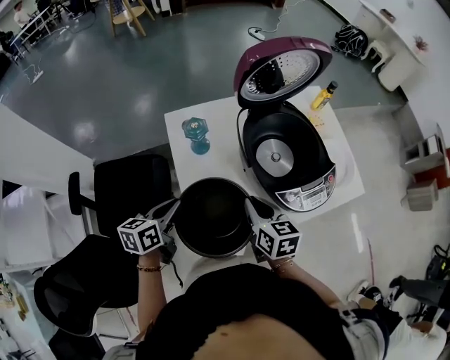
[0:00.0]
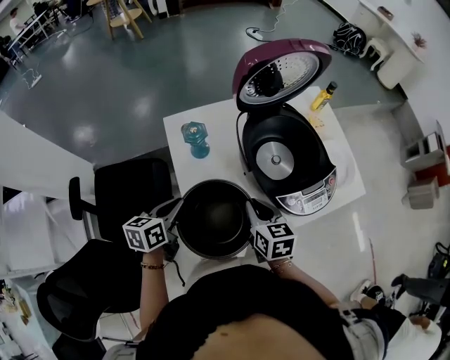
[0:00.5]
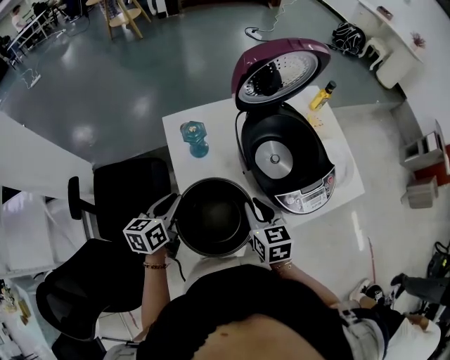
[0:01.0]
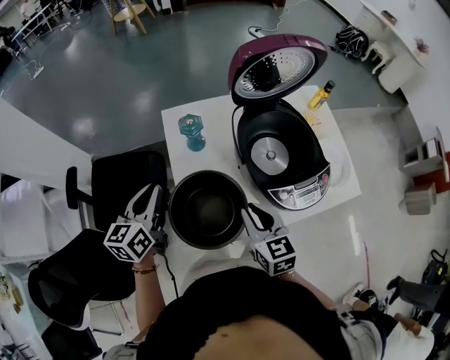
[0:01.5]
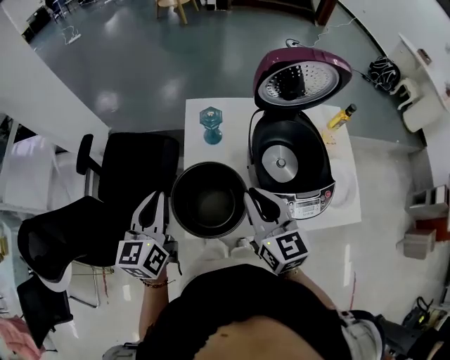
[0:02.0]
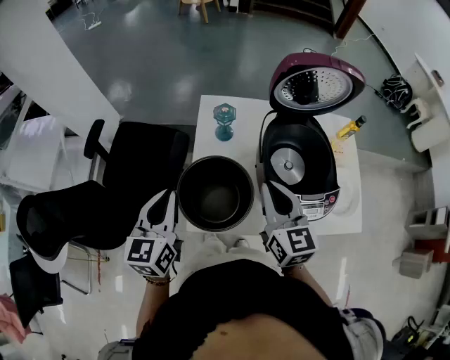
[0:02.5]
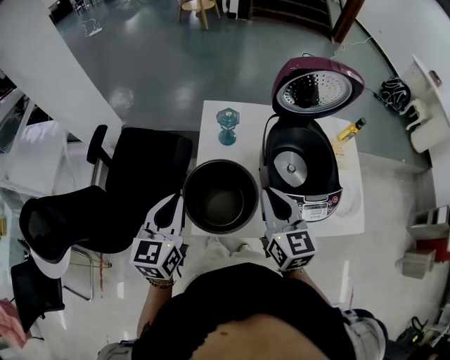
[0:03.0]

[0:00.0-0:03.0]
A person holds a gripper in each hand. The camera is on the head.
0:00.0 to 0:01.5: The left gripper shifts roughly 10 cm upward, and rotates some 20 degrees.
0:01.5 to 0:03.0: The right gripper goes about 10 cm upward; the left gripper is displaced backward by roughly 15 cm.

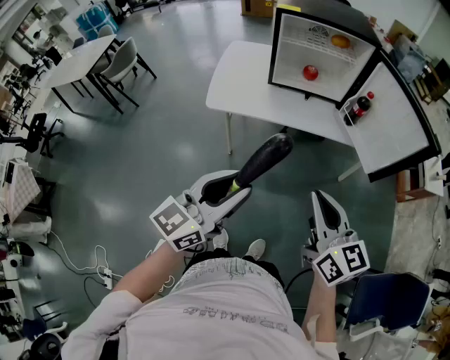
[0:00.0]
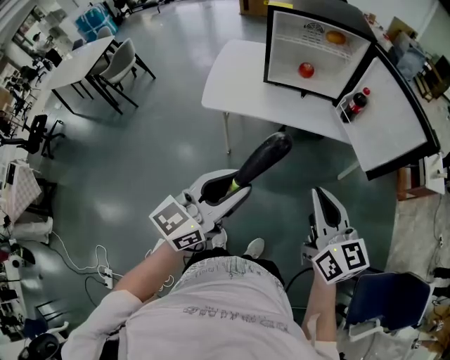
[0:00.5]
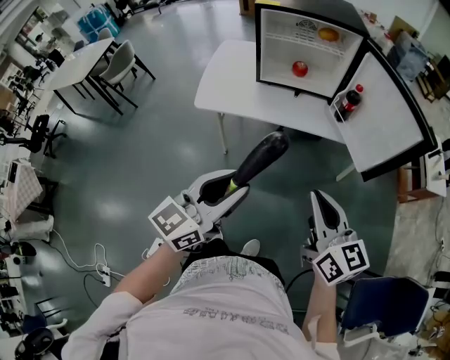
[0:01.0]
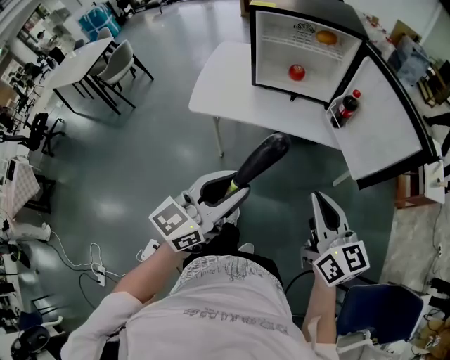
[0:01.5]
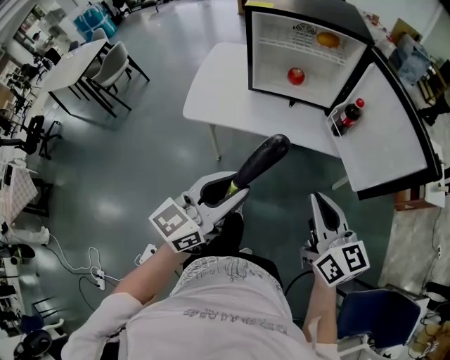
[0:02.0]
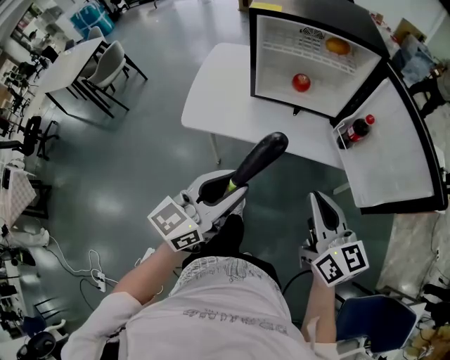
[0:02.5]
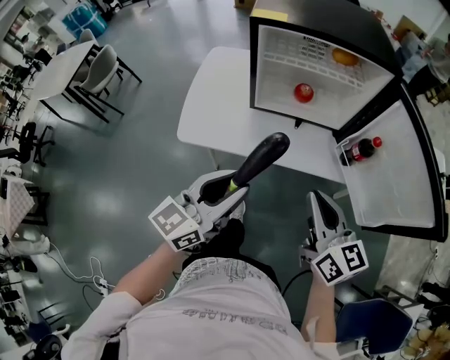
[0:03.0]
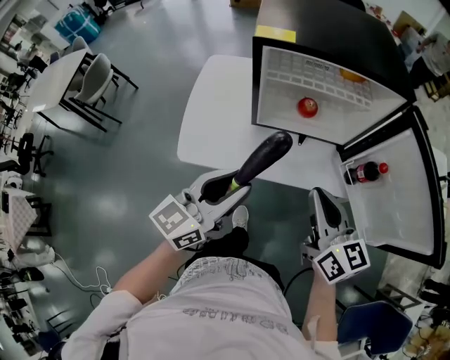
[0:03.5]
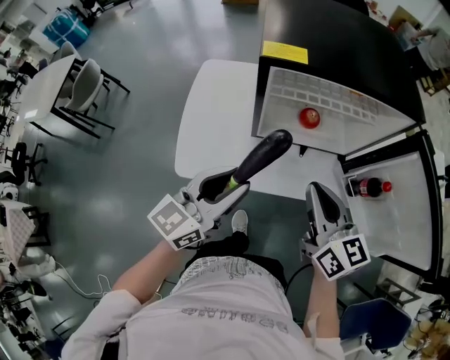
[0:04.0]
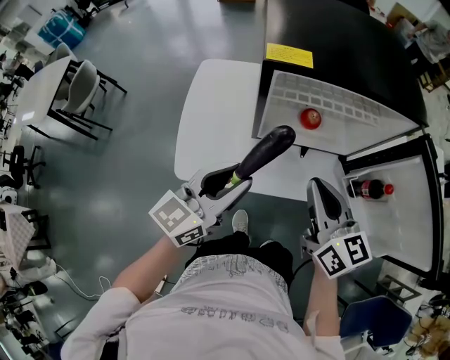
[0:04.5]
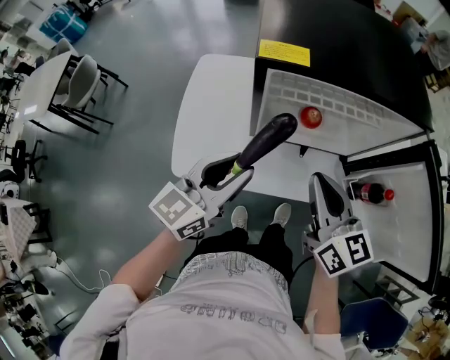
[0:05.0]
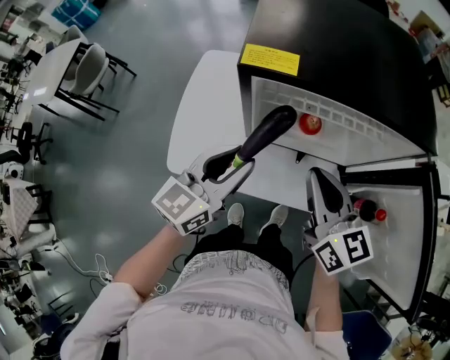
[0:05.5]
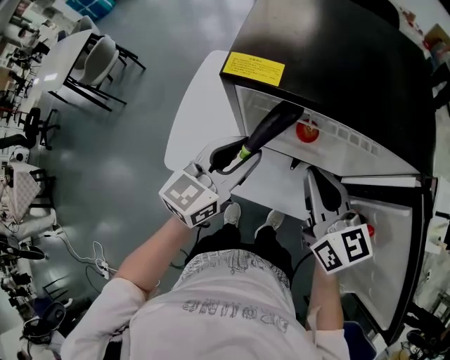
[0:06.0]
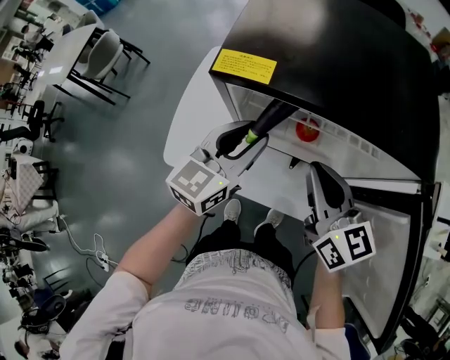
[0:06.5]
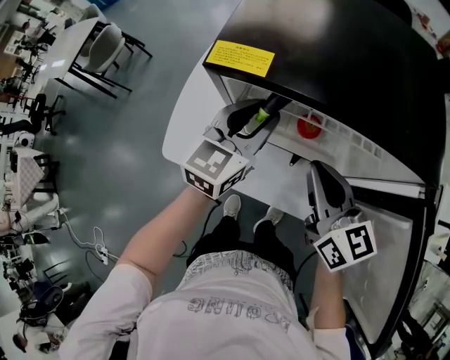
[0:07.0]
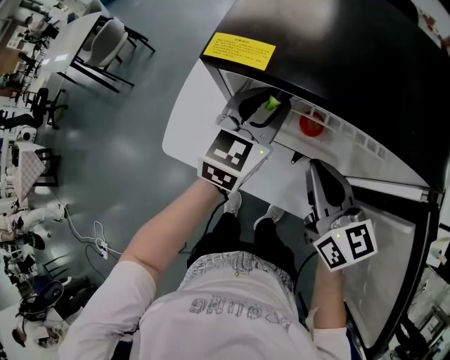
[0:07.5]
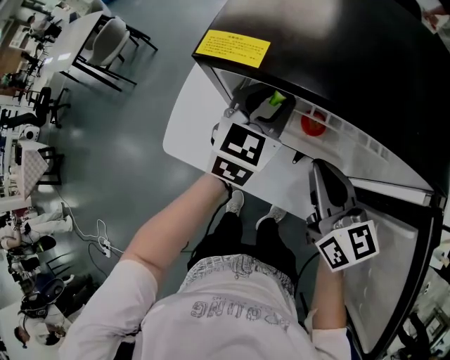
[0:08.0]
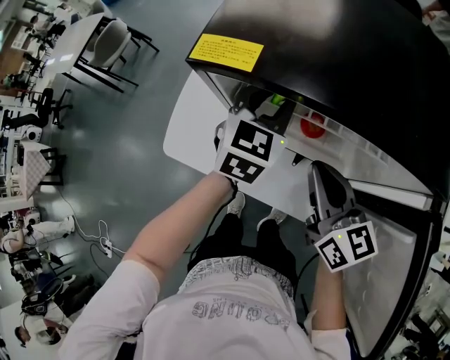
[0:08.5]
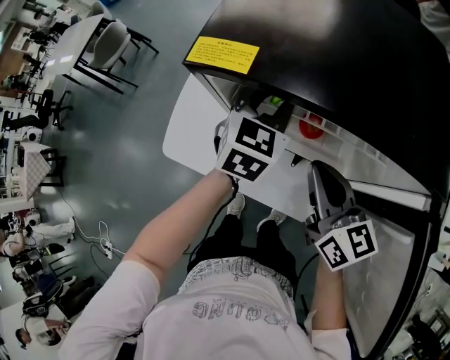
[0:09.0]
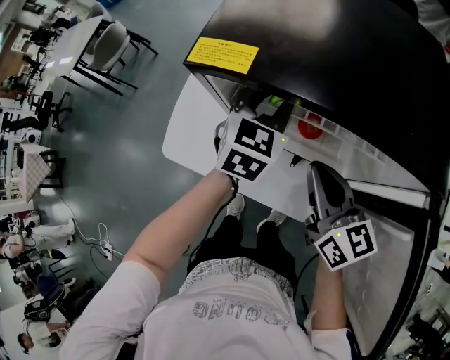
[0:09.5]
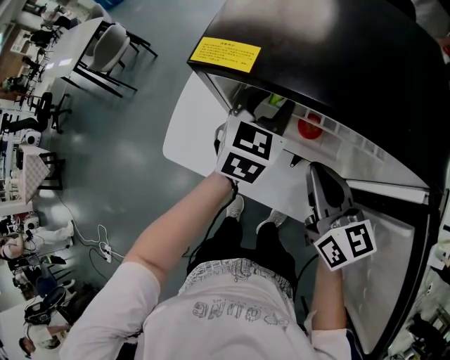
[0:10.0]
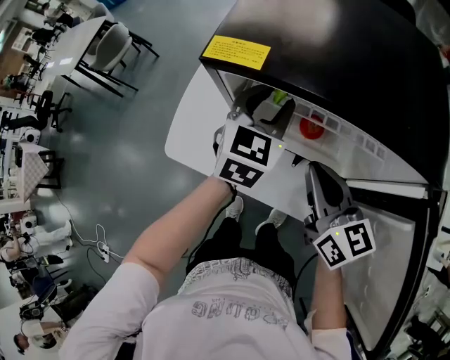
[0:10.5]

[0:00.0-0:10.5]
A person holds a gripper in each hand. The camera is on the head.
0:00.0 to 0:02.0: Both grippers move forward and to the right, approximately 15 cm.
0:02.0 to 0:04.0: Both grippers travel together forward and to the left, approximately 30 cm.
0:04.0 to 0:06.5: The right gripper heads forward, covering approximately 15 cm, while the left gripper moves forward and to the right, roughly 20 cm, and changes its angle by some 20 degrees.
0:06.5 to 0:08.5: The right gripper goes about 5 cm downward, while the left gripper is displaced forward and to the right by approximately 10 cm, and turns by about 20 degrees.
0:08.5 to 0:10.5: The grippers make only small movements.

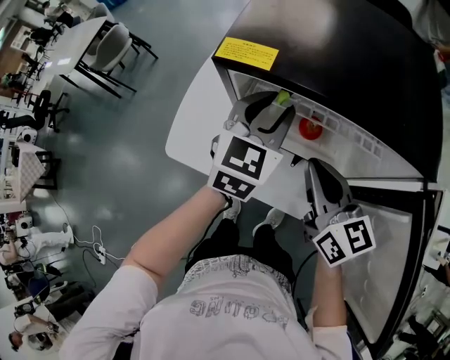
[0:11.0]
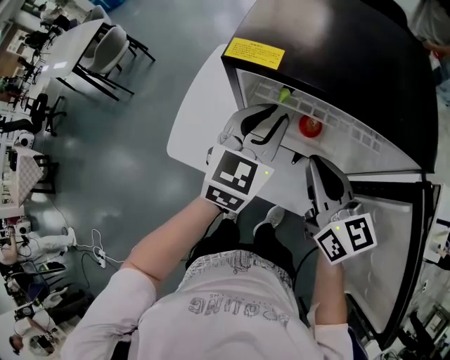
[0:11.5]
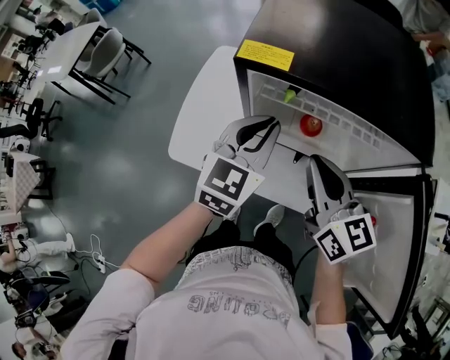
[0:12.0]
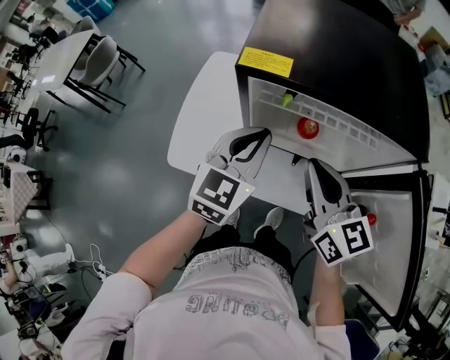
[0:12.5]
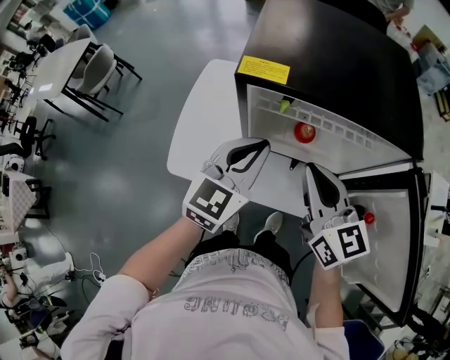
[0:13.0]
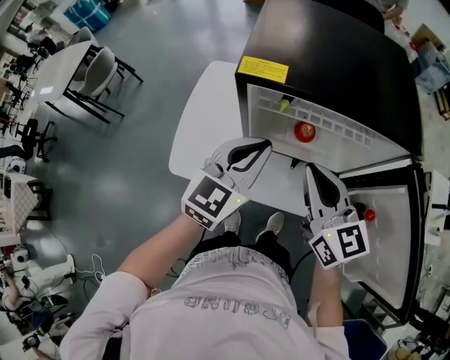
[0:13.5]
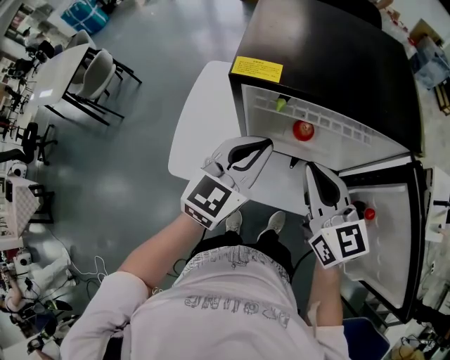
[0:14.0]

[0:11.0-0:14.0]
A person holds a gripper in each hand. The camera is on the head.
0:11.0 to 0:12.5: The left gripper shifts some 10 cm backward and to the left, and closes its fingers, while the right gripper moves some 5 cm.
0:12.5 to 0:14.0: There are only small adjustments of the grippers.

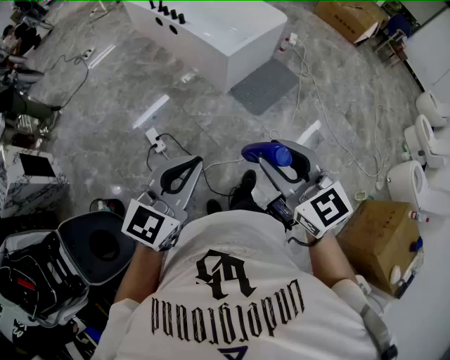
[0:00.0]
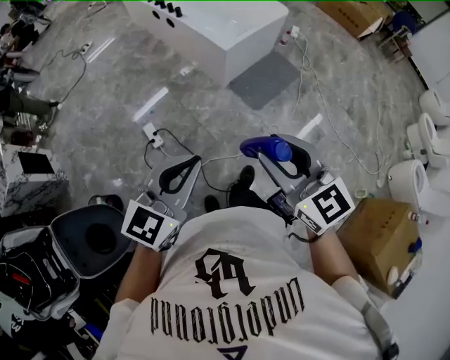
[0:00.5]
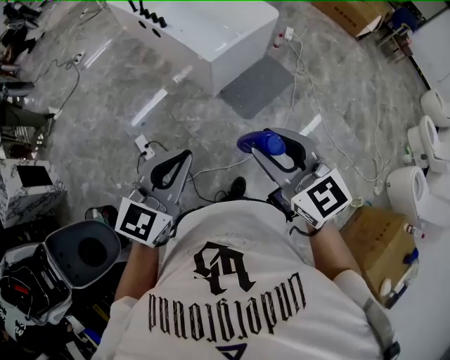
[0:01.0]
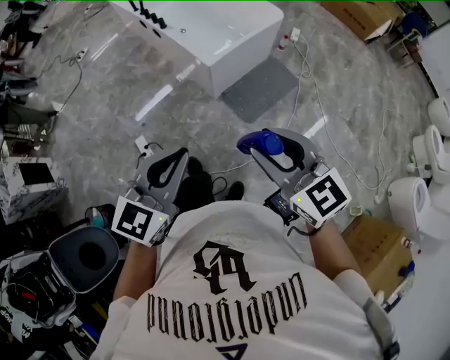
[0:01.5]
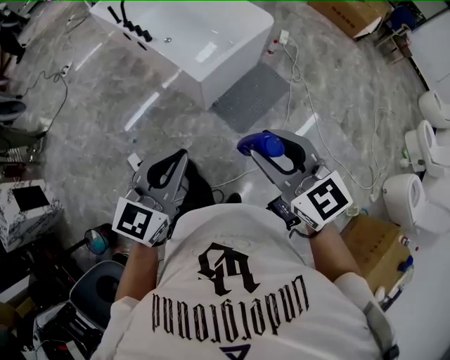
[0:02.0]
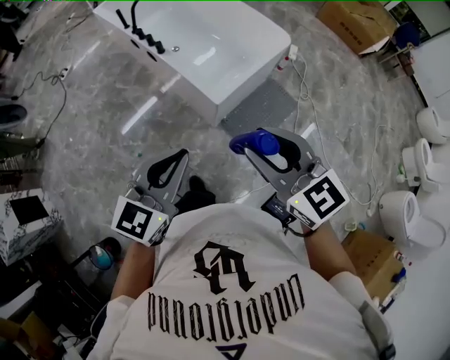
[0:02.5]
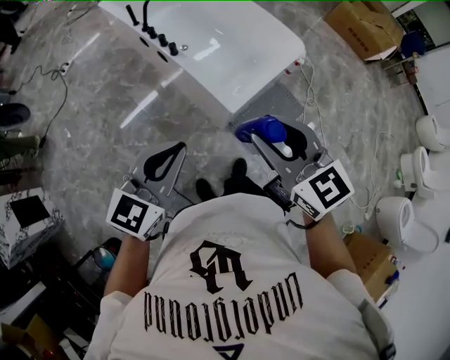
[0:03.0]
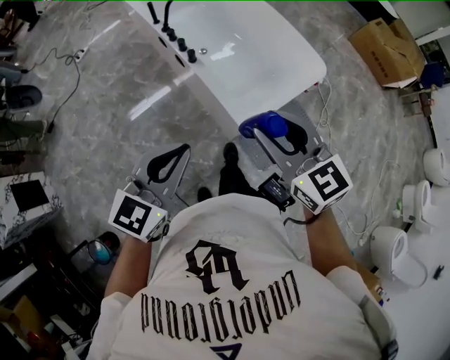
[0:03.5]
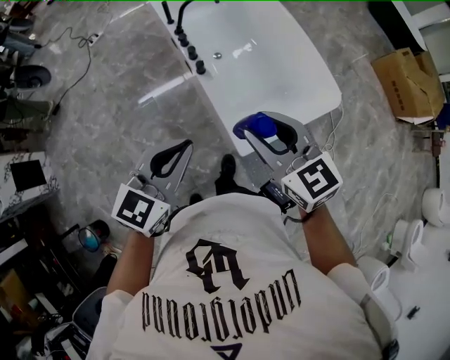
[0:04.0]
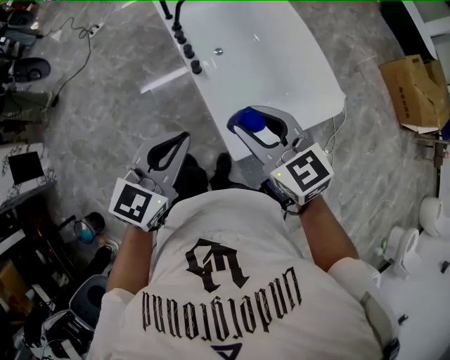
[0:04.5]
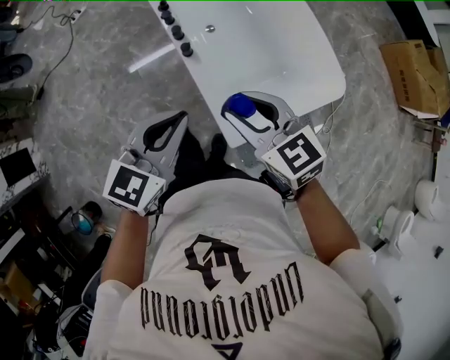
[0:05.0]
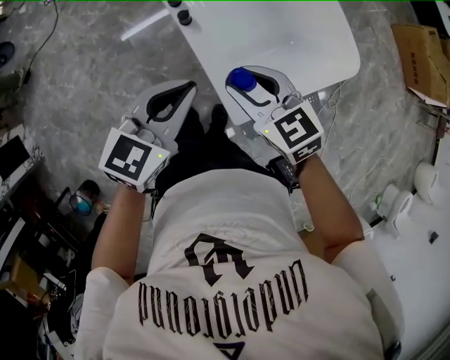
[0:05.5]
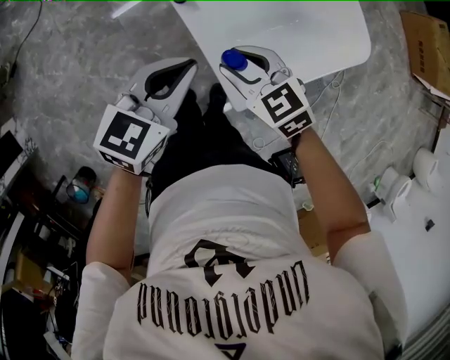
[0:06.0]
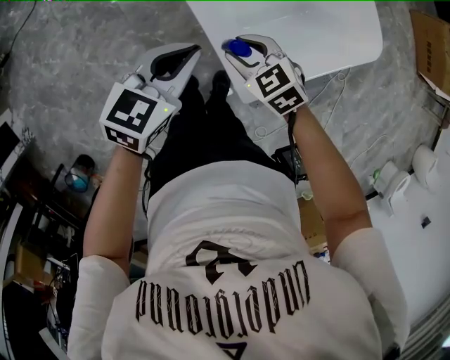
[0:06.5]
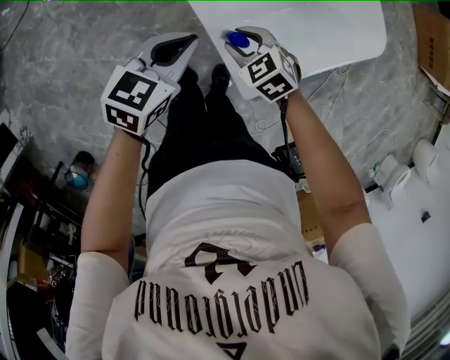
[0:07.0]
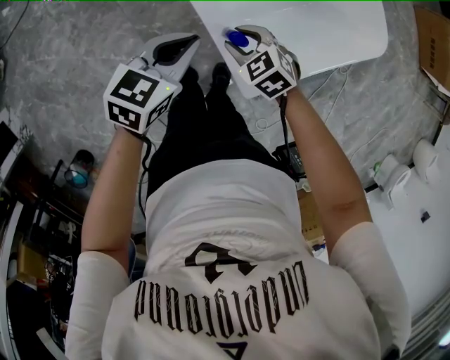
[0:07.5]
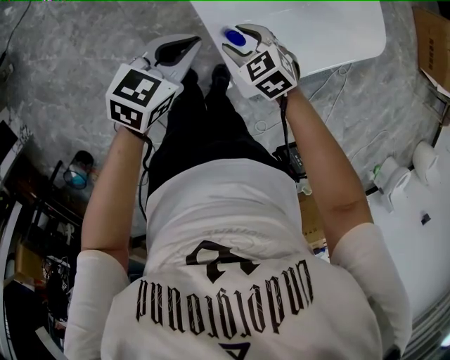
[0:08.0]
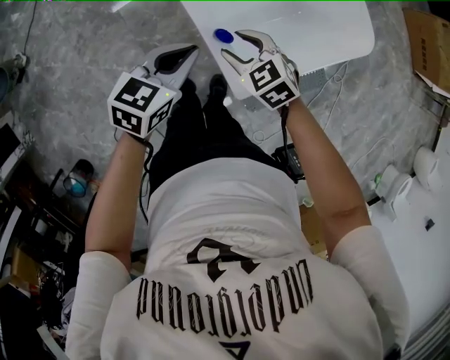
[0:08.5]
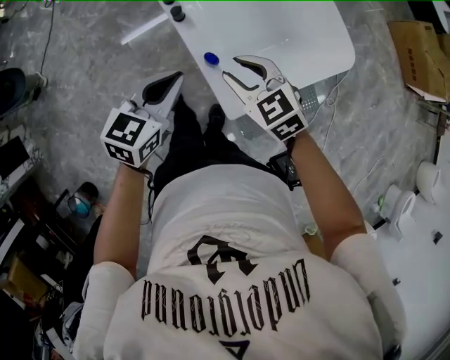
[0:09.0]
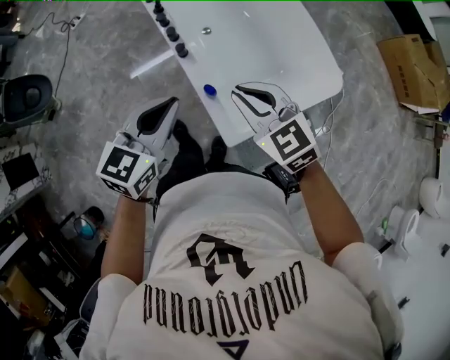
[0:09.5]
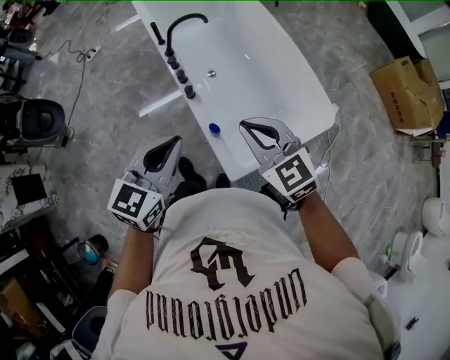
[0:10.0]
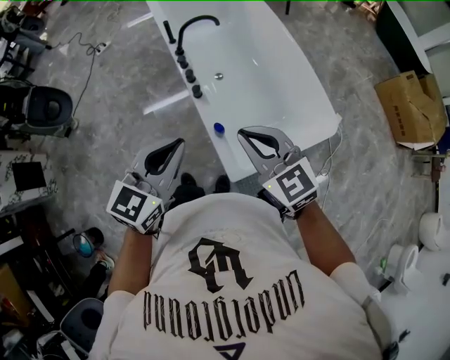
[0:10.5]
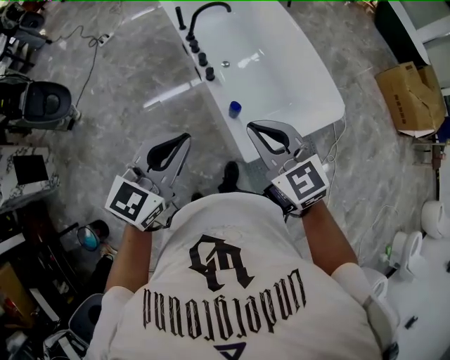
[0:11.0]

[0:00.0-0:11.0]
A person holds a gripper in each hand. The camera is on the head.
0:00.0 to 0:02.0: The two grippers go some 35 cm forward and to the right.
0:02.0 to 0:03.5: Both grippers travel together forward and to the left, about 40 cm.
0:03.5 to 0:05.5: The two grippers go approximately 35 cm forward and downward. The right gripper rotates approximately 30 degrees.
0:05.5 to 0:07.5: The grippers both shift downward by some 25 cm. The right gripper changes its angle by about 20 degrees.
0:07.5 to 0:09.0: The left gripper is displaced upward and backward by about 15 cm. The right gripper shifts some 20 cm upward.
0:09.0 to 0:11.0: Both grippers move upward and backward, about 25 cm. The right gripper closes its fingers.
